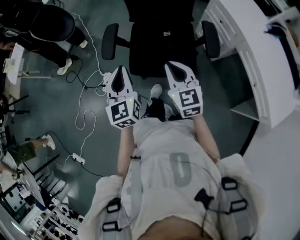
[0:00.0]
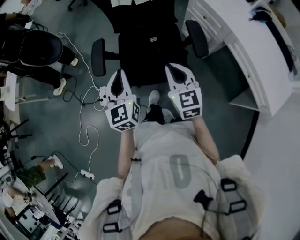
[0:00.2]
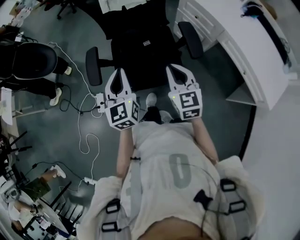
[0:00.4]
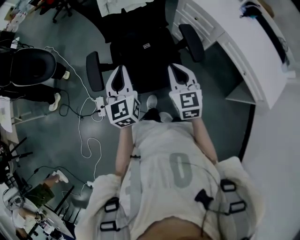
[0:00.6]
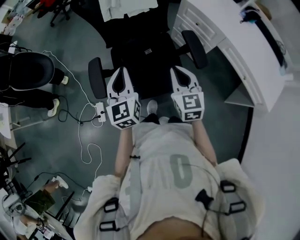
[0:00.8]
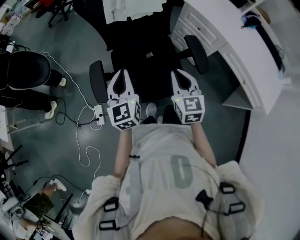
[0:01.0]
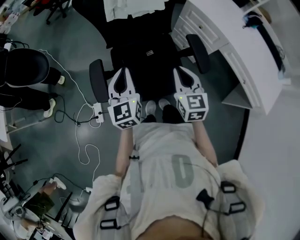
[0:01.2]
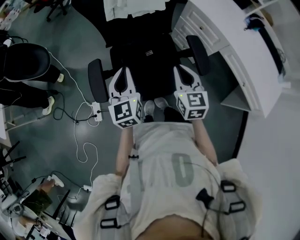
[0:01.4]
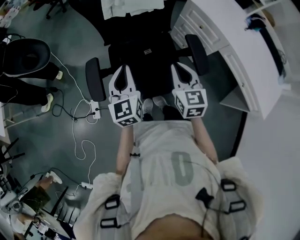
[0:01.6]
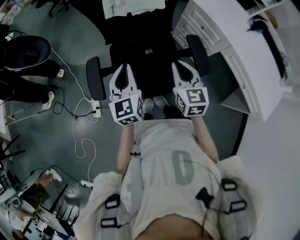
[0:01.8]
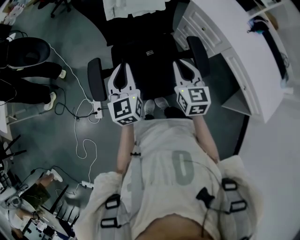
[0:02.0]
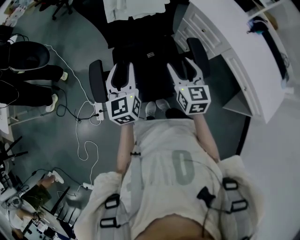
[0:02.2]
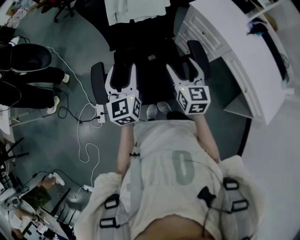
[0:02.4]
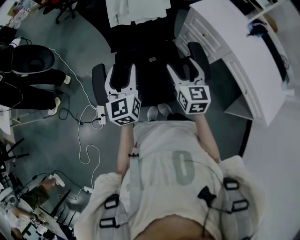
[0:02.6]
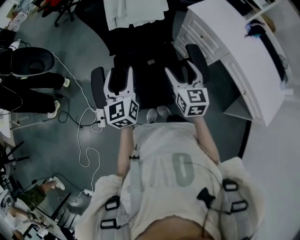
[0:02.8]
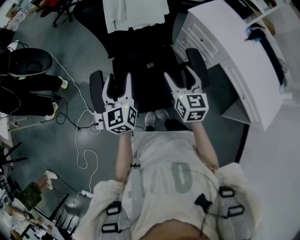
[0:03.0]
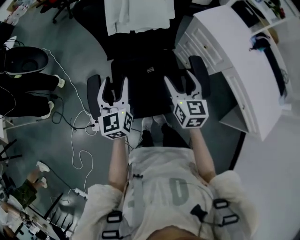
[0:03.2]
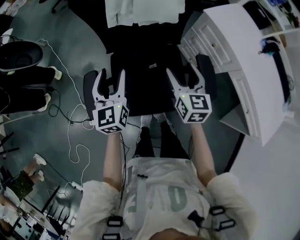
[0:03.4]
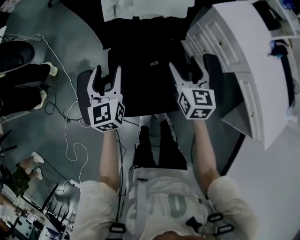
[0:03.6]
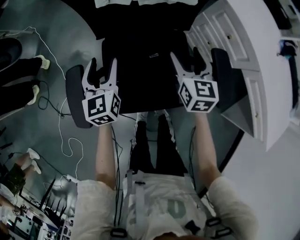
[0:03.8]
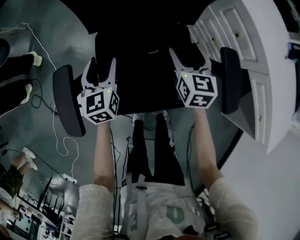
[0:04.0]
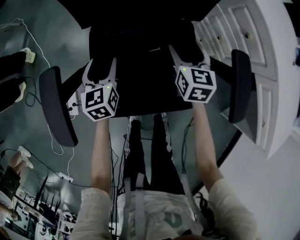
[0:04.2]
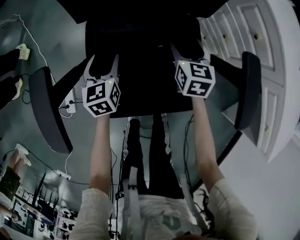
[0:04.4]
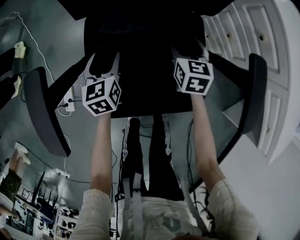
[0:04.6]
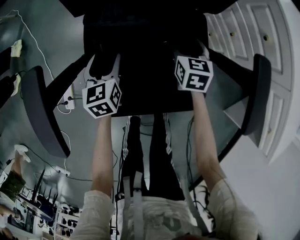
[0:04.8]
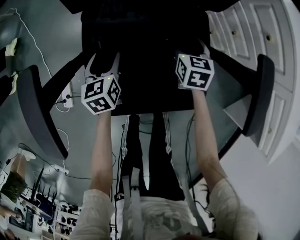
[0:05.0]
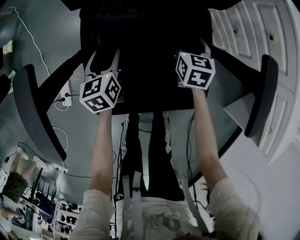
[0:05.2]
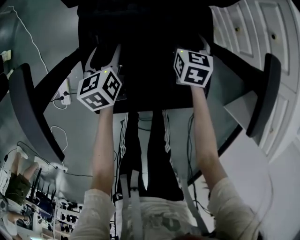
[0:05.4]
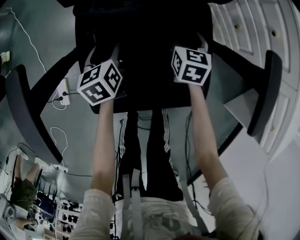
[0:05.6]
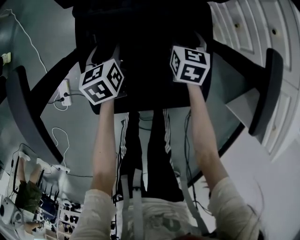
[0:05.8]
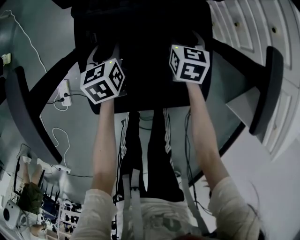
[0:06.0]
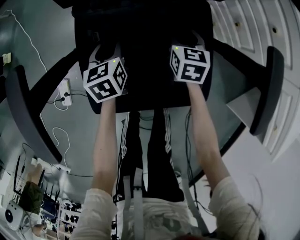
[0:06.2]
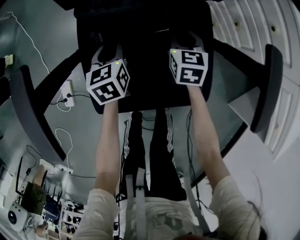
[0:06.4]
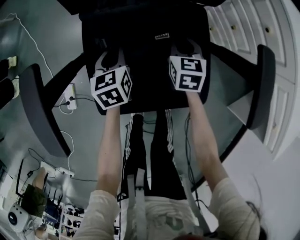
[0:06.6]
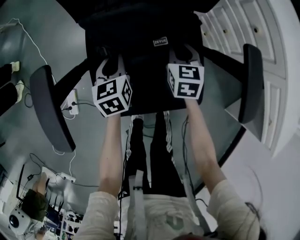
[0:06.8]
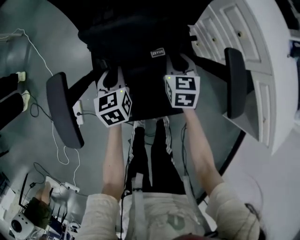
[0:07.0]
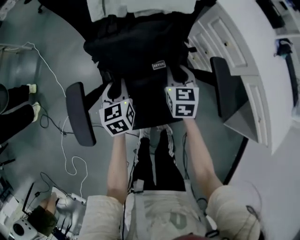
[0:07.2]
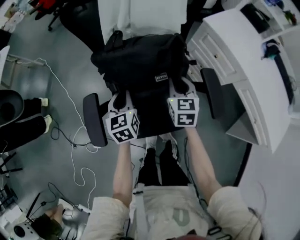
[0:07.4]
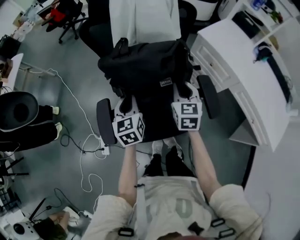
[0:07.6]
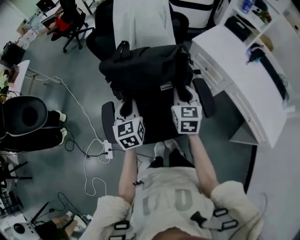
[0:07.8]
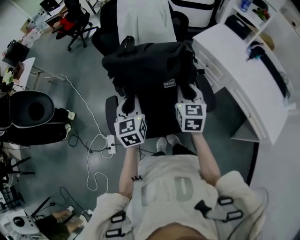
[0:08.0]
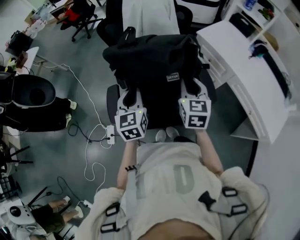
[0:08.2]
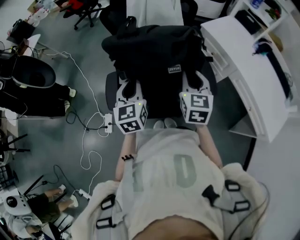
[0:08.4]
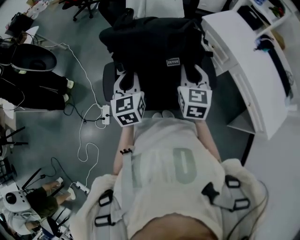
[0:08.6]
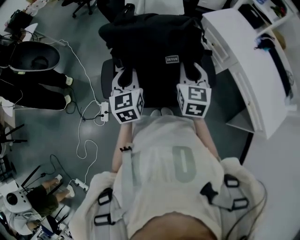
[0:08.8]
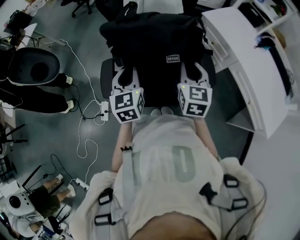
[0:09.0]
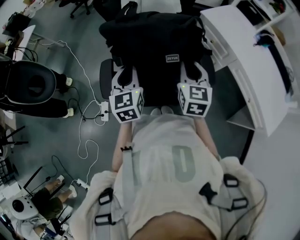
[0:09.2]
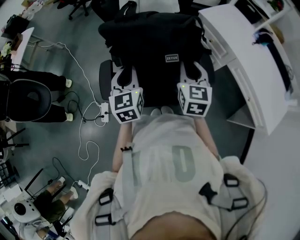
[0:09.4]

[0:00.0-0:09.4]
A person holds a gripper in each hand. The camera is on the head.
0:00.0 to 0:01.6: The grippers both shift forward by approximately 20 cm. The right gripper rotates approximately 20 degrees.
0:01.6 to 0:03.2: Both grippers travel together forward, about 5 cm. The right gripper opens up. The left gripper opens.
0:03.2 to 0:04.8: Both grippers travel together downward, roughly 50 cm. The left gripper turns by some 30 degrees. Meanwhile the right gripper turns by some 30 degrees.
0:04.8 to 0:06.2: The right gripper closes its fingers. The left gripper changes place by approximately 5 cm, and closes up.
0:06.2 to 0:07.8: The left gripper moves up and down over some 25 cm, changing direction 2 times. The right gripper swings up and down, roughly 25 cm each way, with 2 reversals.
0:07.8 to 0:09.4: The two grippers go roughly 10 cm backward and upward.

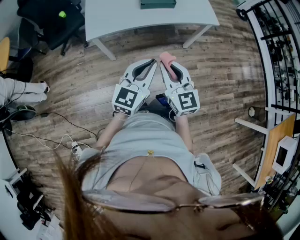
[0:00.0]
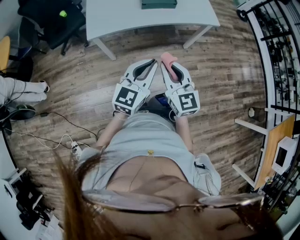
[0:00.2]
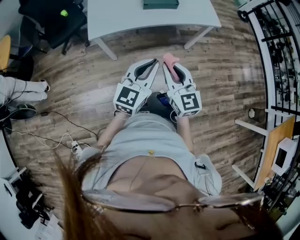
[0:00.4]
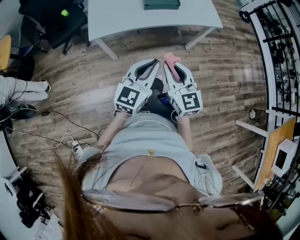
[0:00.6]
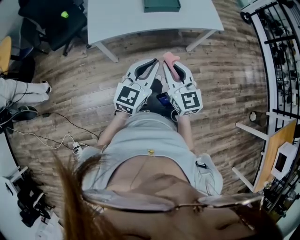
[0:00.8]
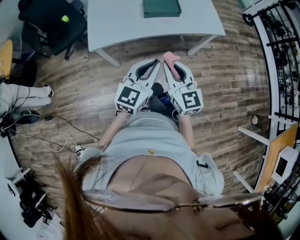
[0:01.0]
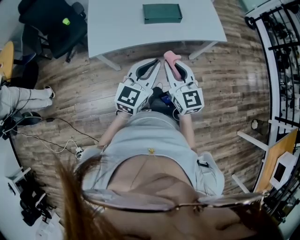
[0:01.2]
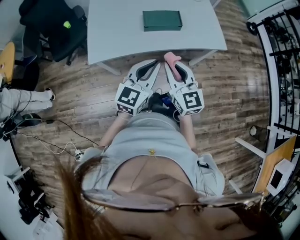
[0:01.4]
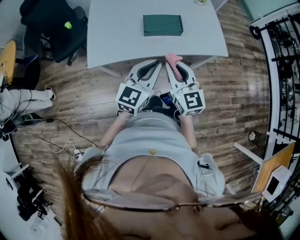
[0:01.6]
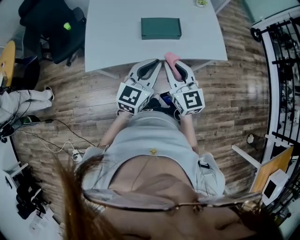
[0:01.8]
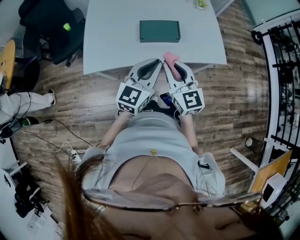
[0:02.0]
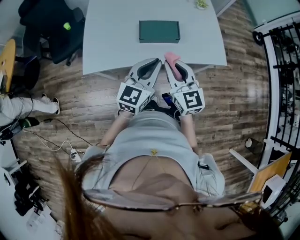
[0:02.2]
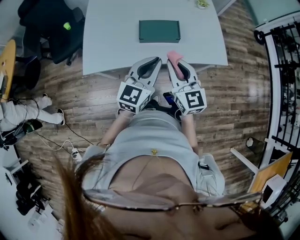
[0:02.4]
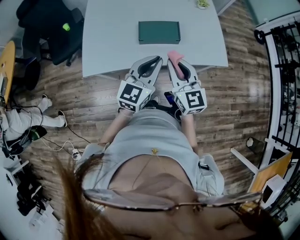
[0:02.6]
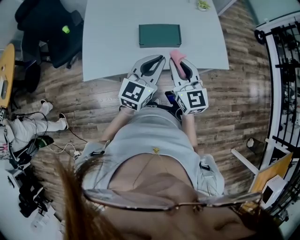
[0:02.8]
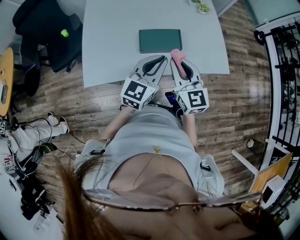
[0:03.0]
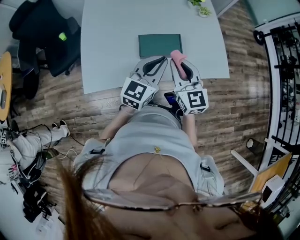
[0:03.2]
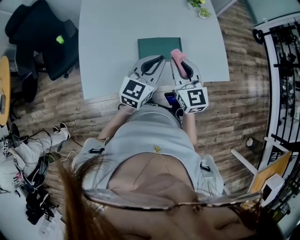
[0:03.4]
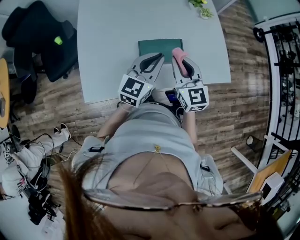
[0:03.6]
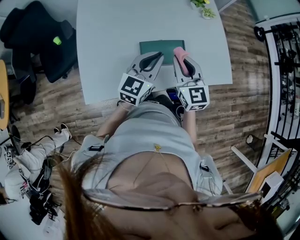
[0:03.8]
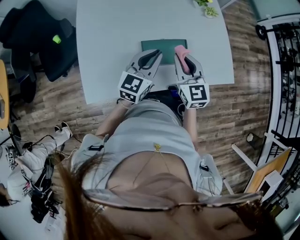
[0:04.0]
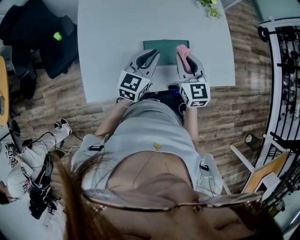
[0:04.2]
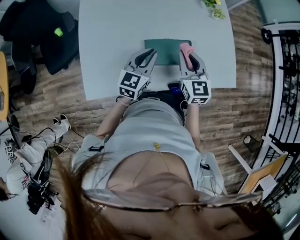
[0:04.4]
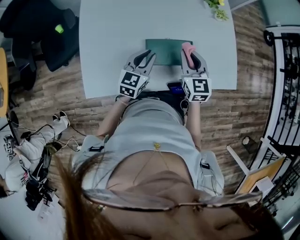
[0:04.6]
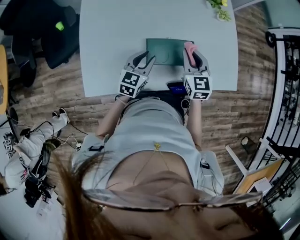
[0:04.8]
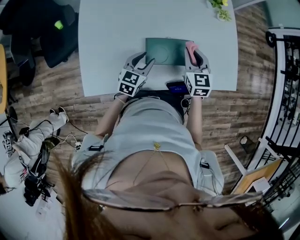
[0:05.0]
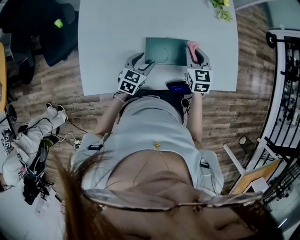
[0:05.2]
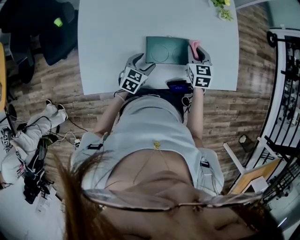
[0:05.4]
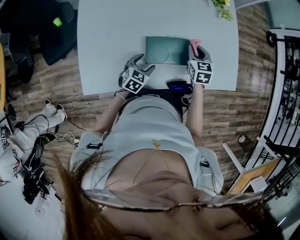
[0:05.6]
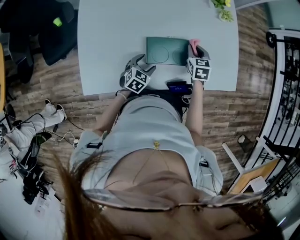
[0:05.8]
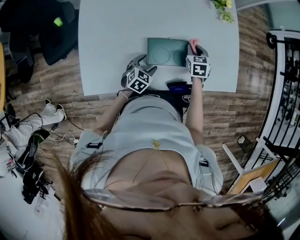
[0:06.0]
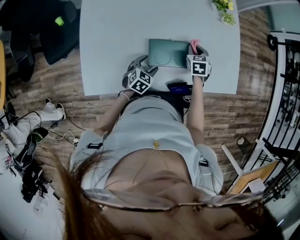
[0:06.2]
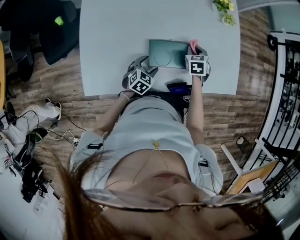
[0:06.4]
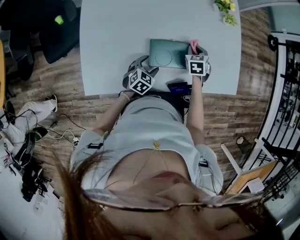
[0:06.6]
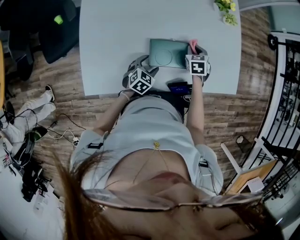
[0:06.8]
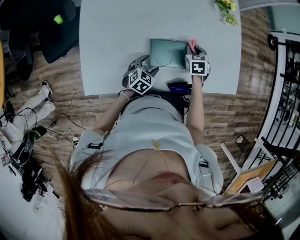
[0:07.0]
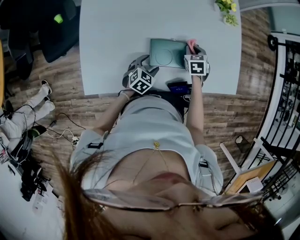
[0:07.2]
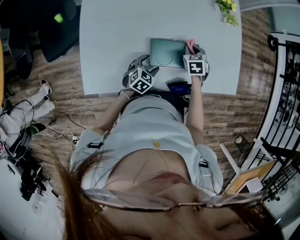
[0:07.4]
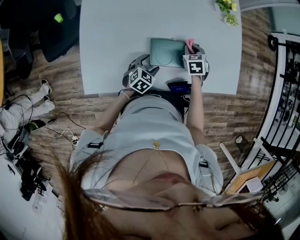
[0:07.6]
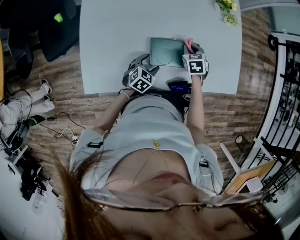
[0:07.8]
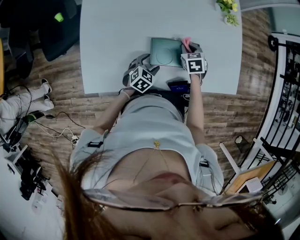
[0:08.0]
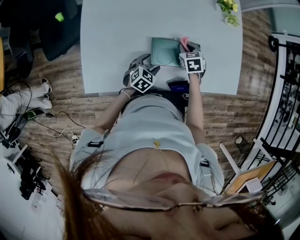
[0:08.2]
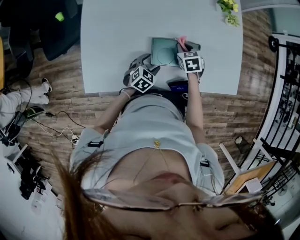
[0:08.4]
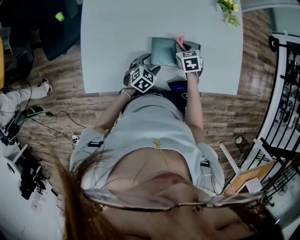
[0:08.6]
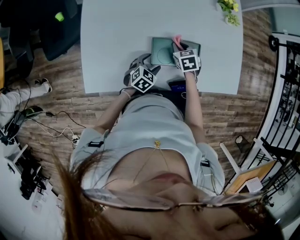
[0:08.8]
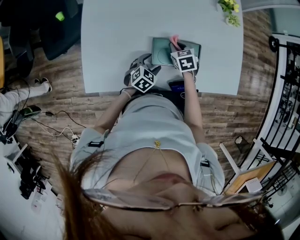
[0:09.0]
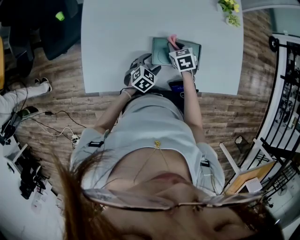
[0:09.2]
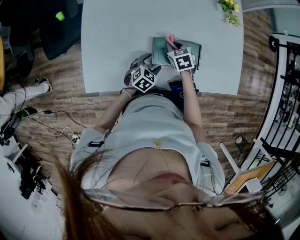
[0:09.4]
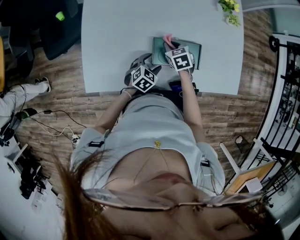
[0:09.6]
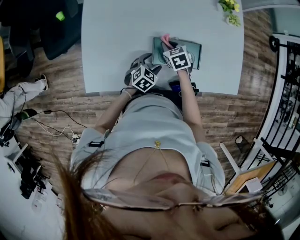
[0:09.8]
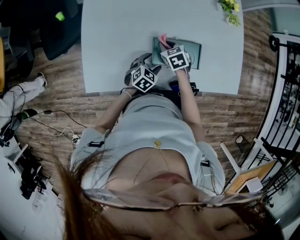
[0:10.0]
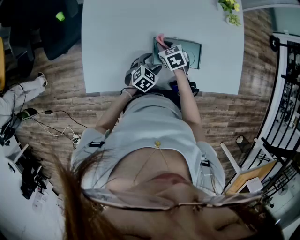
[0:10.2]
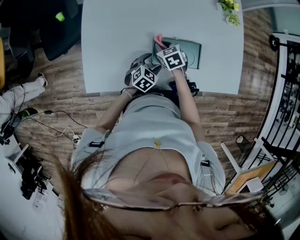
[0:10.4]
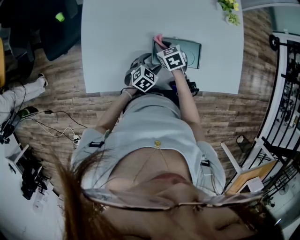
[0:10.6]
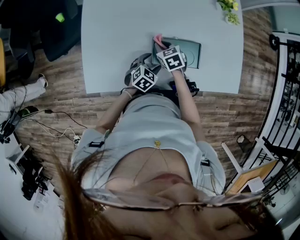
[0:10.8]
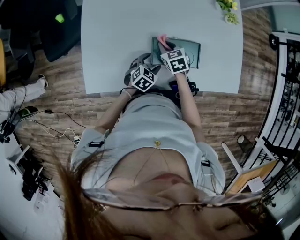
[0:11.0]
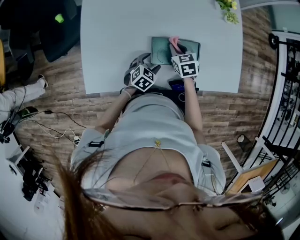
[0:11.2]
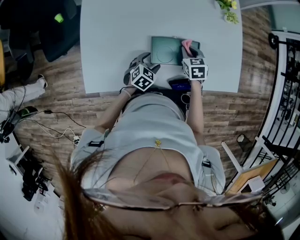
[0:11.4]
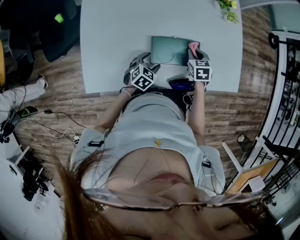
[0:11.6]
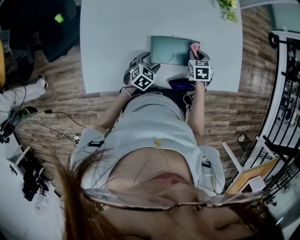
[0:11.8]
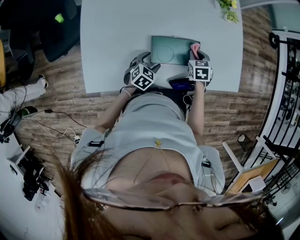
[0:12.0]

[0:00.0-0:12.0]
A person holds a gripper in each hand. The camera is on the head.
0:00.0 to 0:01.6: The grippers both shift forward by approximately 25 cm.
0:01.6 to 0:03.0: Both grippers move forward, approximately 15 cm.
0:03.0 to 0:04.4: The right gripper goes roughly 20 cm forward and downward. The left gripper is displaced forward, downward and to the left by approximately 20 cm.
0:04.4 to 0:06.0: The left gripper moves downward, some 20 cm, tips its fingers downward by approximately 30 degrees, and opens, while the right gripper moves downward and forward, about 20 cm, and points its fingers roughly 30 degrees further downward.
0:06.0 to 0:07.6: There are only small adjustments of the grippers.
0:07.6 to 0:09.0: The right gripper moves to the left, about 10 cm.
0:09.0 to 0:10.4: The right gripper moves to the left, some 5 cm.
0:10.4 to 0:12.0: The right gripper is displaced to the right by approximately 20 cm, and swivels about 20 degrees.

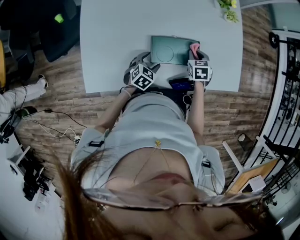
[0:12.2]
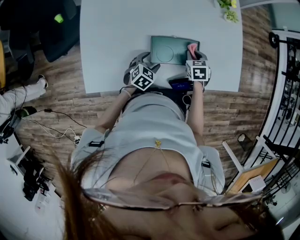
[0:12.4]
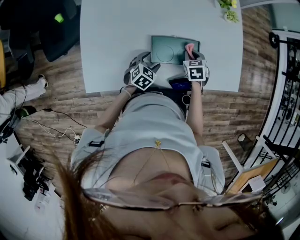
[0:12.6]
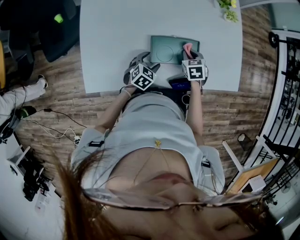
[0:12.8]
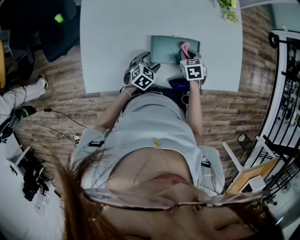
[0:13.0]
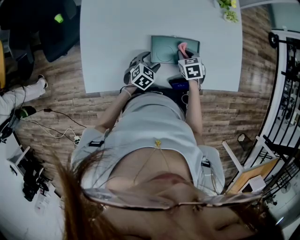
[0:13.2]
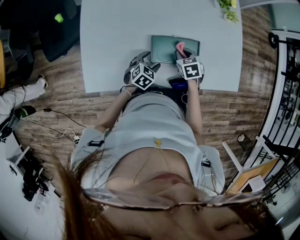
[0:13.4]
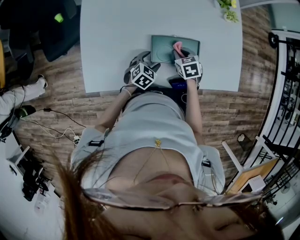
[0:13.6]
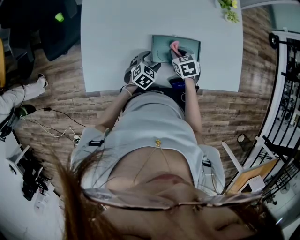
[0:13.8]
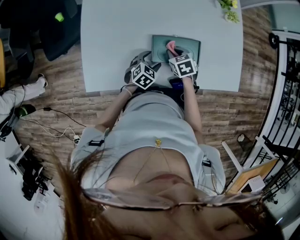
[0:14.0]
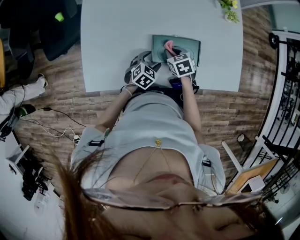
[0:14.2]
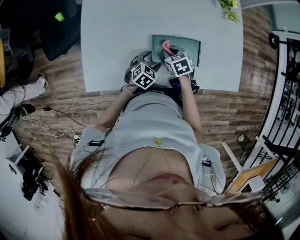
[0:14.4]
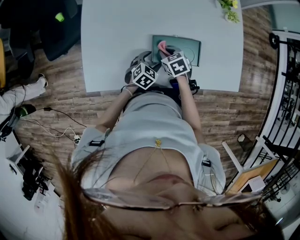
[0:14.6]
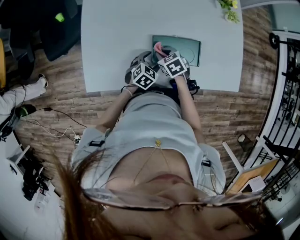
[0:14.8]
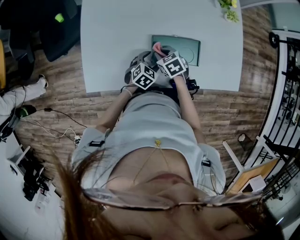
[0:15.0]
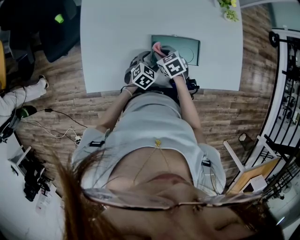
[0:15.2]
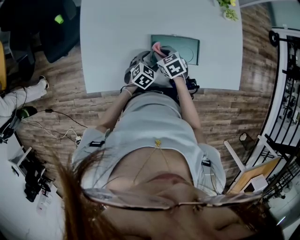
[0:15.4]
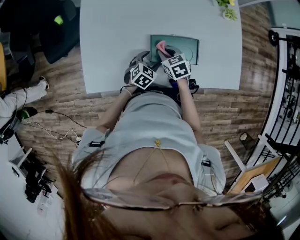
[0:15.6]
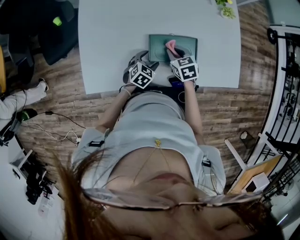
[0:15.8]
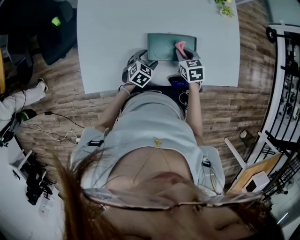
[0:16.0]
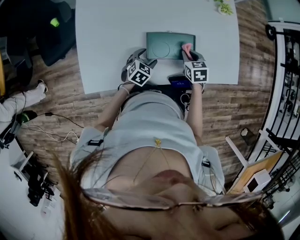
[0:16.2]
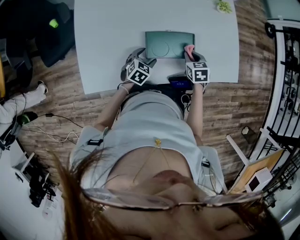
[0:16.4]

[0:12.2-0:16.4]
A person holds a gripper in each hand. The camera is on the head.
0:12.2 to 0:13.6: The right gripper moves to the left, some 10 cm.
0:13.6 to 0:15.0: The right gripper heads to the left, covering roughly 10 cm.
0:15.0 to 0:16.4: The right gripper heads to the right, covering roughly 20 cm, and swivels roughly 30 degrees.
